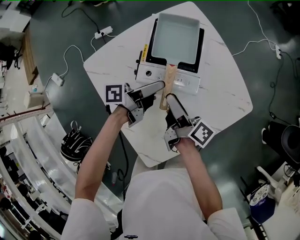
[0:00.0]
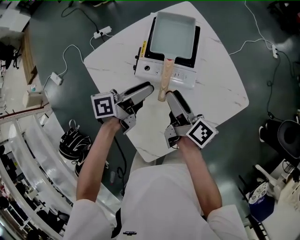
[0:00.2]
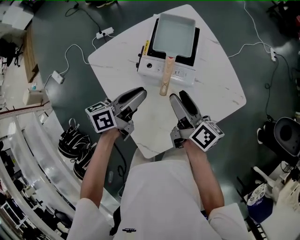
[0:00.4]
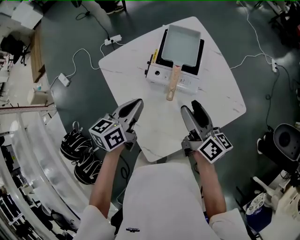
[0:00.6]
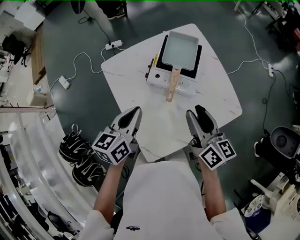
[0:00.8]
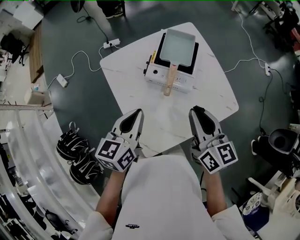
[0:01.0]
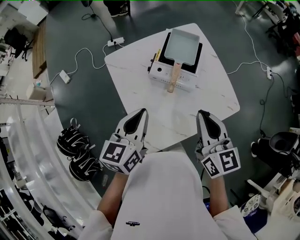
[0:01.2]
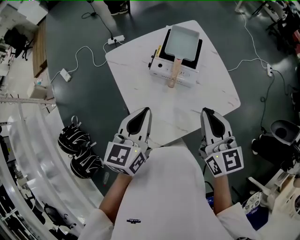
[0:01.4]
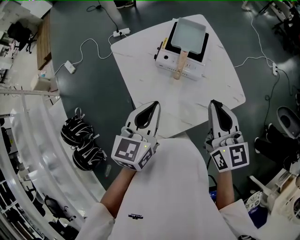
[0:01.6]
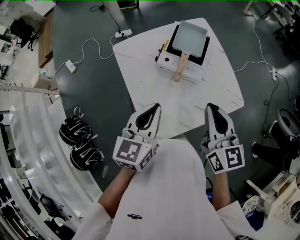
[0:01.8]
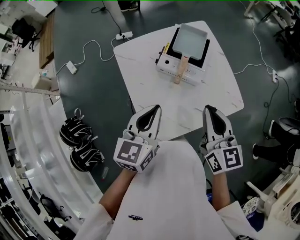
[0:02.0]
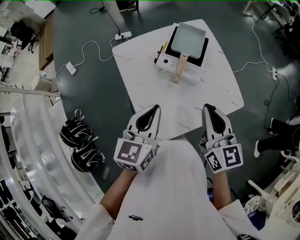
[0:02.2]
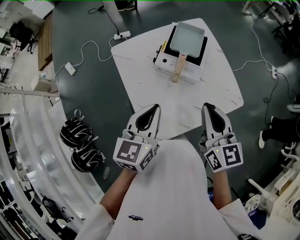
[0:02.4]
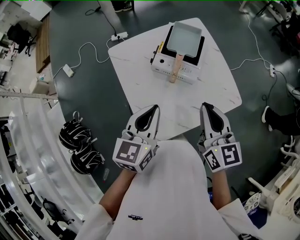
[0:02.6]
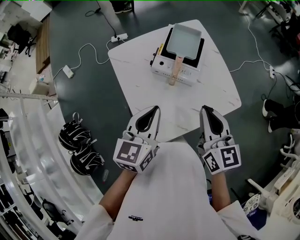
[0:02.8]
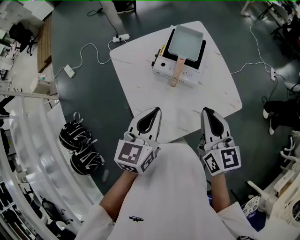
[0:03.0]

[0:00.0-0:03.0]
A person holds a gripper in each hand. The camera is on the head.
0:00.0 to 0:01.6: The left gripper heads backward and upward, covering roughly 30 cm, rotates about 70 degrees, and closes. Meanwhile the right gripper heads upward and backward, covering roughly 30 cm, rotates around the line of its fingers by about 70 degrees, counterclockwise from behind, and closes its fingers.
0:01.6 to 0:03.0: The grippers make only small movements.

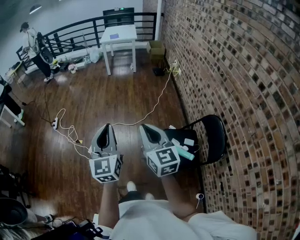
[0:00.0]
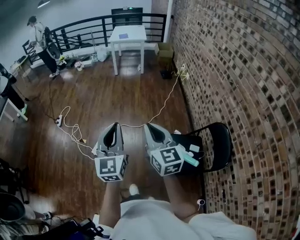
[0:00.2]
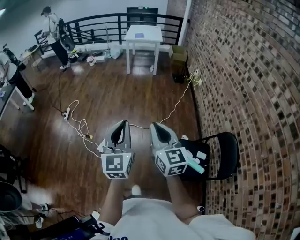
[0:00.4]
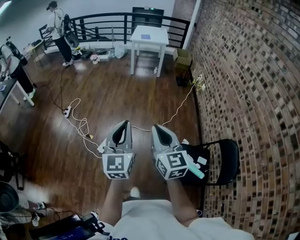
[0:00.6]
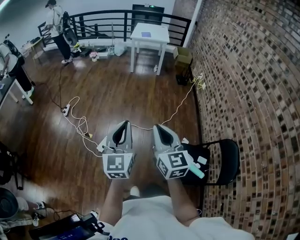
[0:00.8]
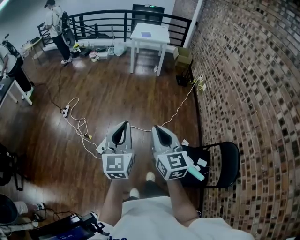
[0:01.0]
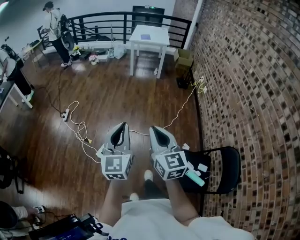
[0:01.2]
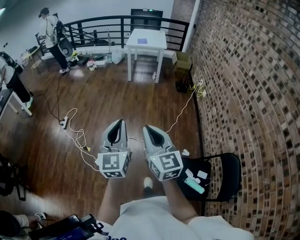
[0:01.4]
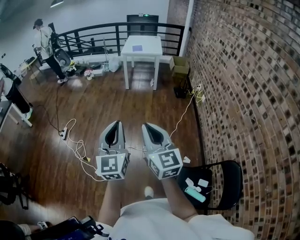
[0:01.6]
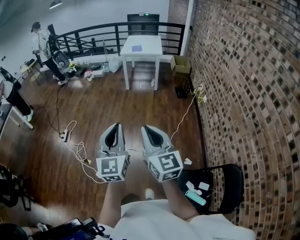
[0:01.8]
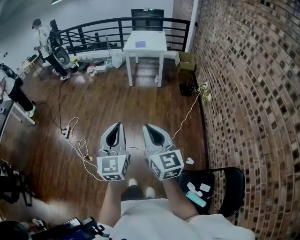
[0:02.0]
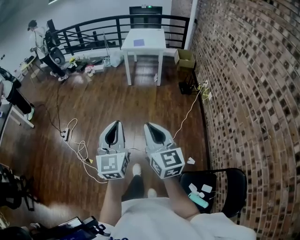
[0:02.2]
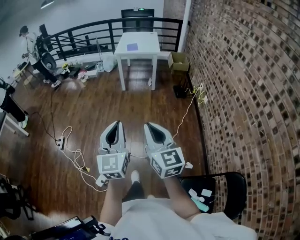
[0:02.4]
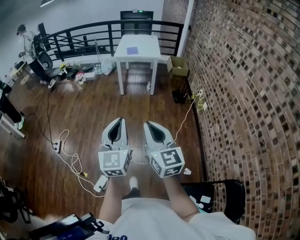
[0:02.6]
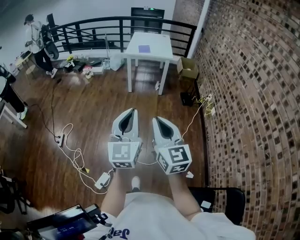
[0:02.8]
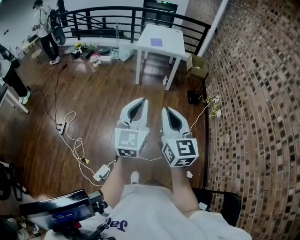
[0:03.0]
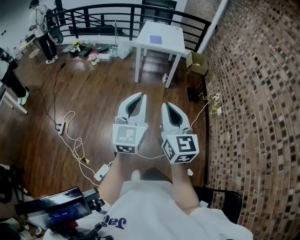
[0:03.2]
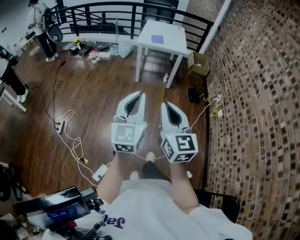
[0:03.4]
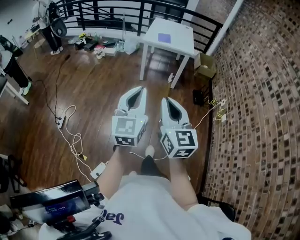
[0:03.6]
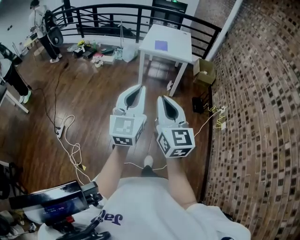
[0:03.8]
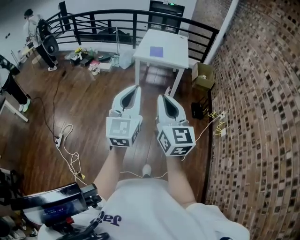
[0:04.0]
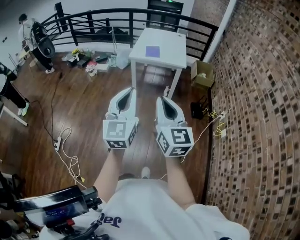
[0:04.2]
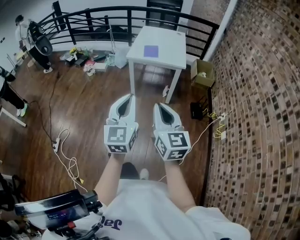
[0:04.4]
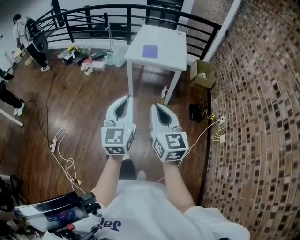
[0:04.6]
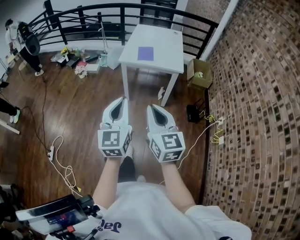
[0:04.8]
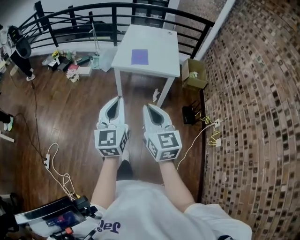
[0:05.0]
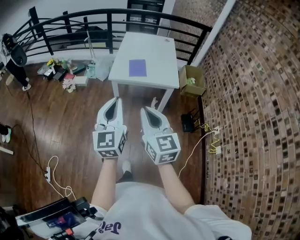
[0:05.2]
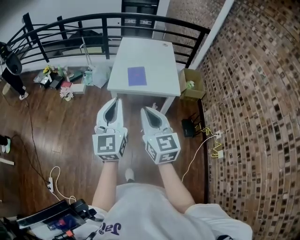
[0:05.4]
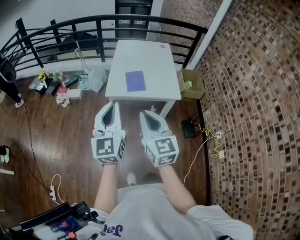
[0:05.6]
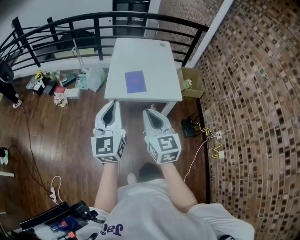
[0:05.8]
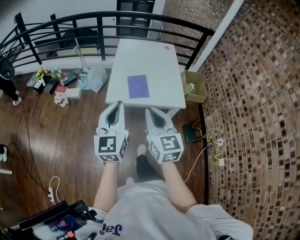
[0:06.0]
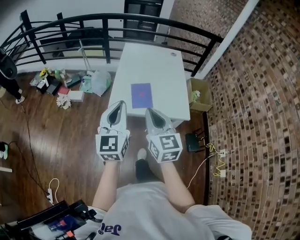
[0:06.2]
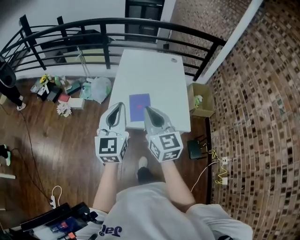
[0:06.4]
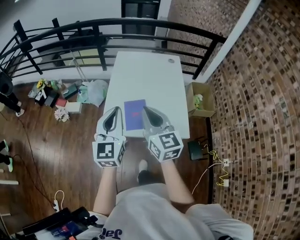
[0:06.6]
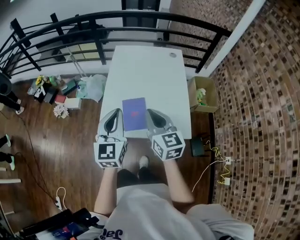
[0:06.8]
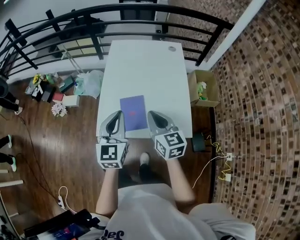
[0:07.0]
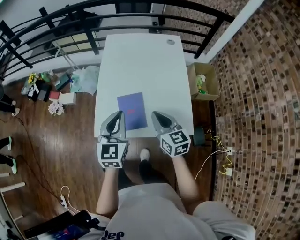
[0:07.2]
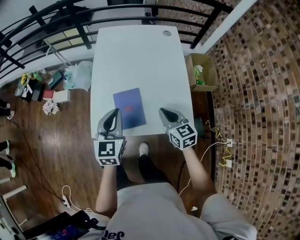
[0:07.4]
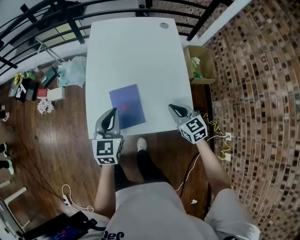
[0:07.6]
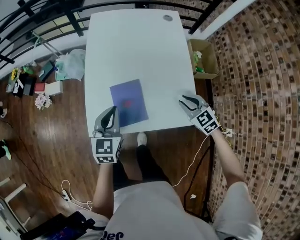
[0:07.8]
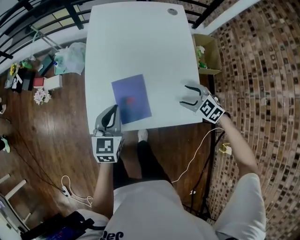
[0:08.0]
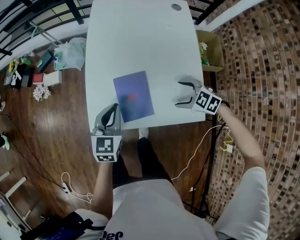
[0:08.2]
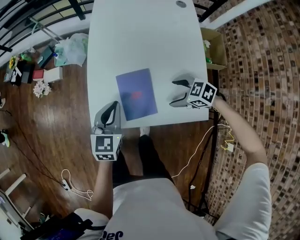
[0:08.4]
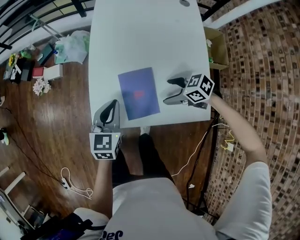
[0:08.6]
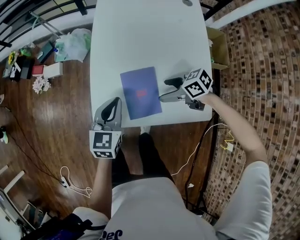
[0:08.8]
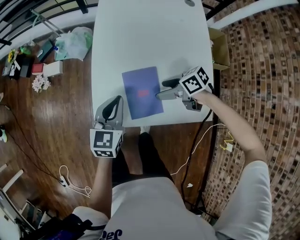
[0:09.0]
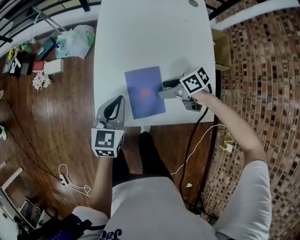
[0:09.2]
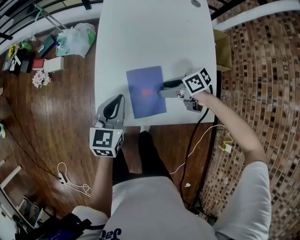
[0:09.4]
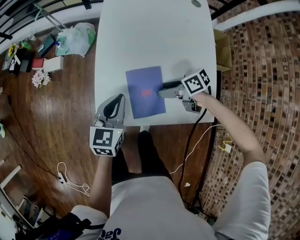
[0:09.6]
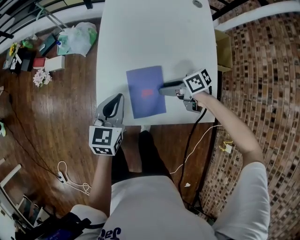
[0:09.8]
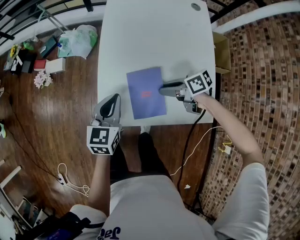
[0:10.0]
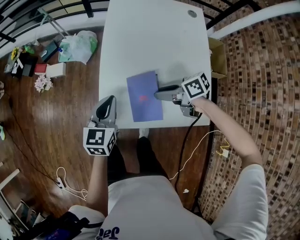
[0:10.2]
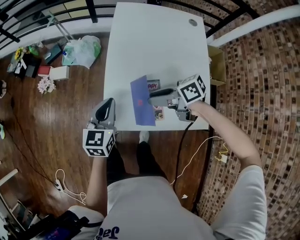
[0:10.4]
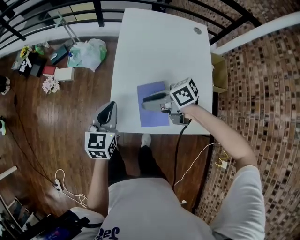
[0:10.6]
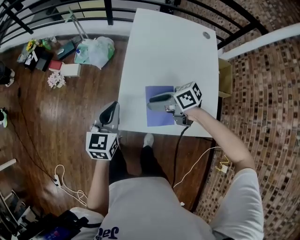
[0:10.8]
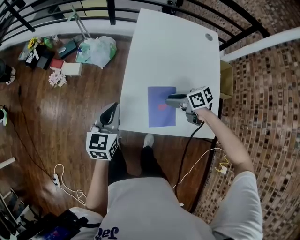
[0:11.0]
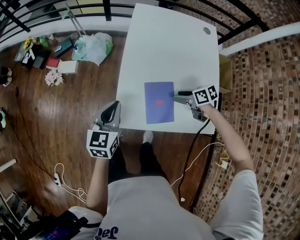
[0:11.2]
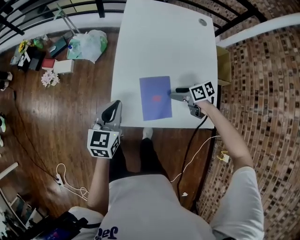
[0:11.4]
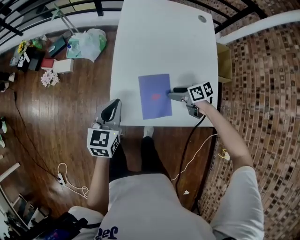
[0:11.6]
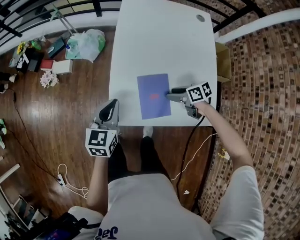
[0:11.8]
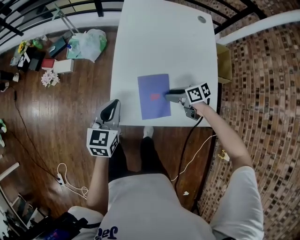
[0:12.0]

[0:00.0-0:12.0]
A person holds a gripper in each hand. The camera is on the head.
0:00.0 to 0:01.6: Both grippers move forward, approximately 30 cm.
0:01.6 to 0:03.0: Both grippers travel together forward, some 35 cm.
0:03.0 to 0:04.4: The two grippers go roughly 35 cm forward.
0:04.4 to 0:06.0: The pair of grippers is taken forward, approximately 50 cm.
0:06.0 to 0:07.6: The right gripper goes about 50 cm forward, downward and to the right, and rotates some 30 degrees; the left gripper shifts about 40 cm forward and downward, and swivels approximately 30 degrees.
0:07.6 to 0:09.0: The right gripper moves about 15 cm, swivels approximately 60 degrees, and opens; the left gripper shifts some 5 cm downward.
0:09.0 to 0:10.4: The left gripper heads to the left, covering about 5 cm. Meanwhile the right gripper shifts some 15 cm upward and to the left, and closes its fingers.
0:10.4 to 0:12.0: The right gripper is displaced downward and to the right by roughly 15 cm.

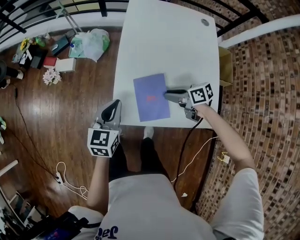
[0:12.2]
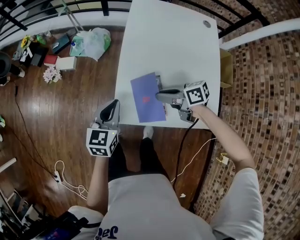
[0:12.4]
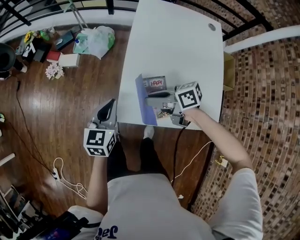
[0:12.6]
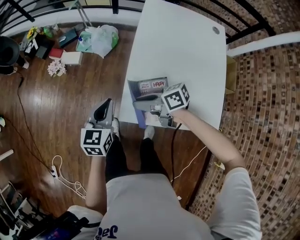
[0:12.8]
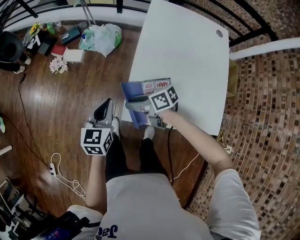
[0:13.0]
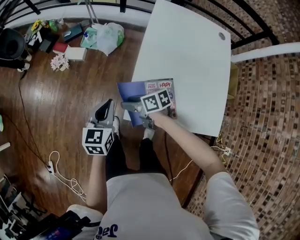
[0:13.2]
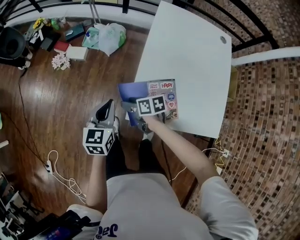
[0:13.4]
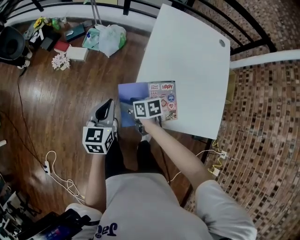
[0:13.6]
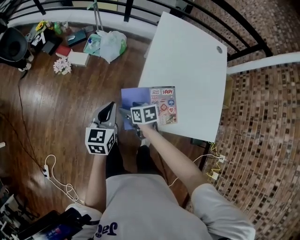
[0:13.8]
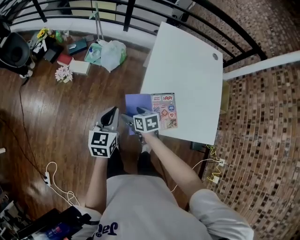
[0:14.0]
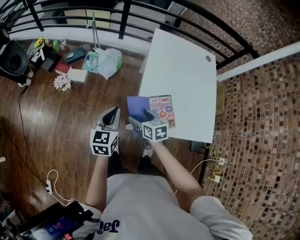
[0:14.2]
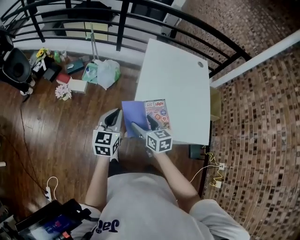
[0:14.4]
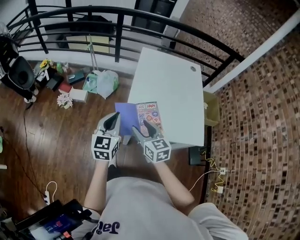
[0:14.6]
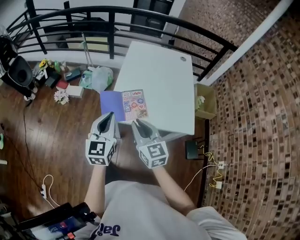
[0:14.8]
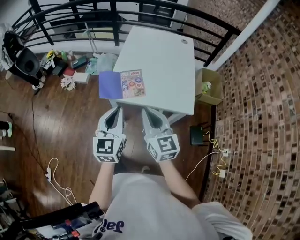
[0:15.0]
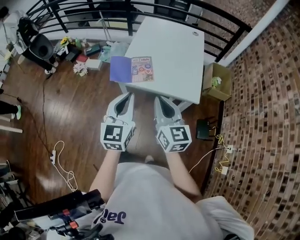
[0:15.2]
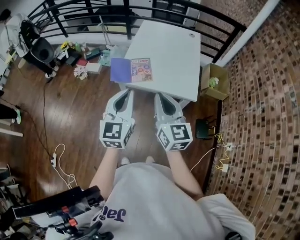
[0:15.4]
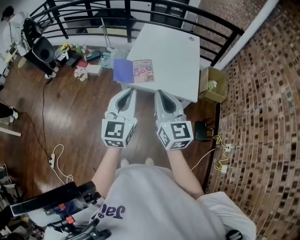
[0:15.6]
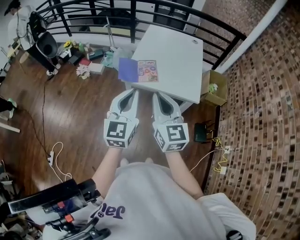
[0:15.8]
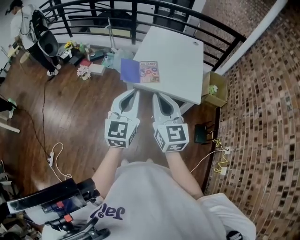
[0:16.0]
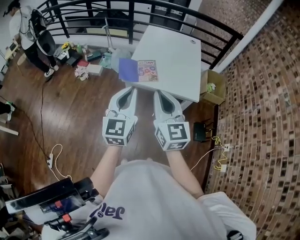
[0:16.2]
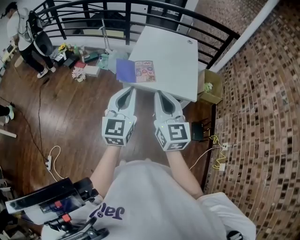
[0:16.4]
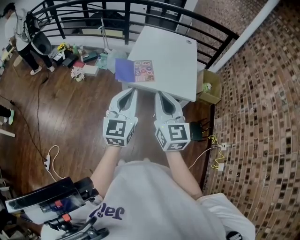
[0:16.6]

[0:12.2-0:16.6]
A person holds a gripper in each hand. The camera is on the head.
0:12.2 to 0:13.6: The left gripper shifts roughly 15 cm to the left and forward; the right gripper shifts about 30 cm to the left and forward.
0:13.6 to 0:15.2: Both grippers move backward, upward and to the right, roughly 50 cm. The left gripper rotates approximately 30 degrees. Meanwhile the right gripper tilts its fingers some 40 degrees upward, and closes.
0:15.2 to 0:16.6: The right gripper travels upward, backward and to the left by approximately 15 cm; the left gripper goes roughly 10 cm backward, upward and to the left.

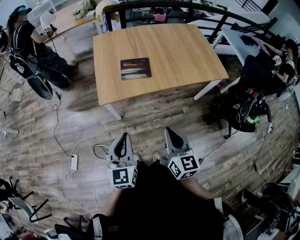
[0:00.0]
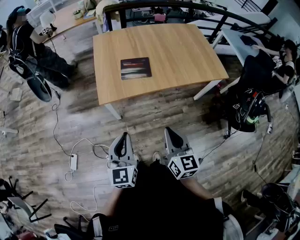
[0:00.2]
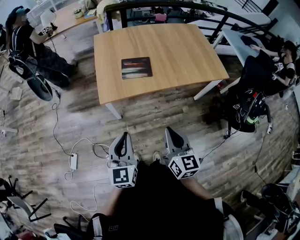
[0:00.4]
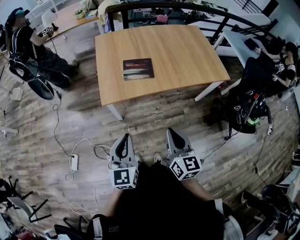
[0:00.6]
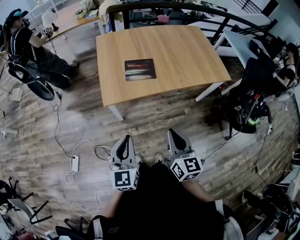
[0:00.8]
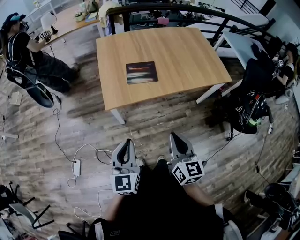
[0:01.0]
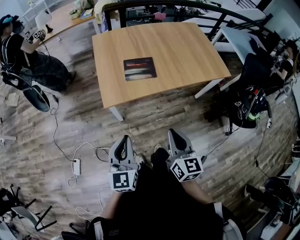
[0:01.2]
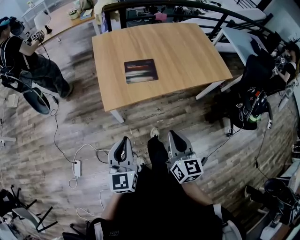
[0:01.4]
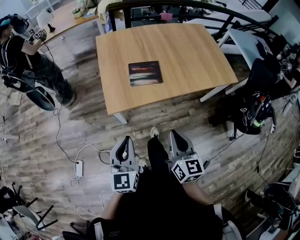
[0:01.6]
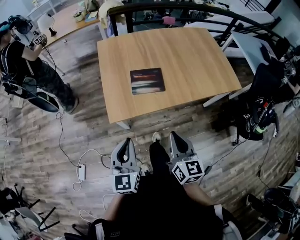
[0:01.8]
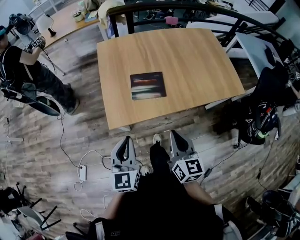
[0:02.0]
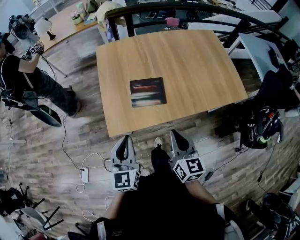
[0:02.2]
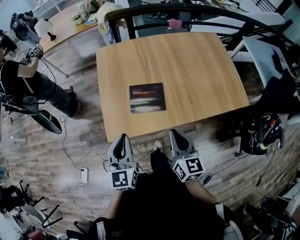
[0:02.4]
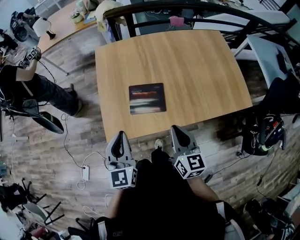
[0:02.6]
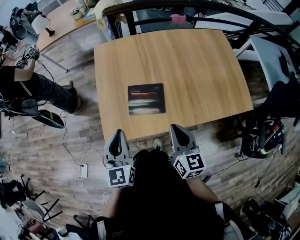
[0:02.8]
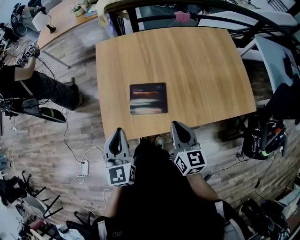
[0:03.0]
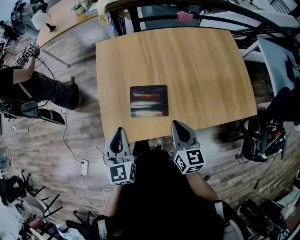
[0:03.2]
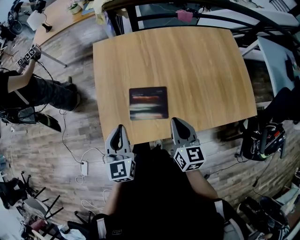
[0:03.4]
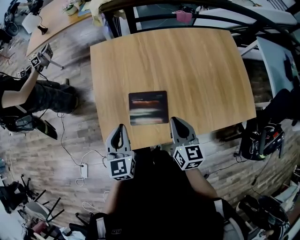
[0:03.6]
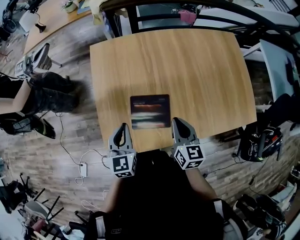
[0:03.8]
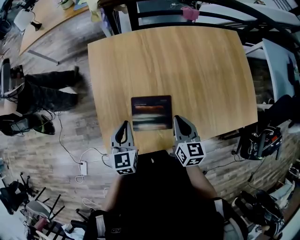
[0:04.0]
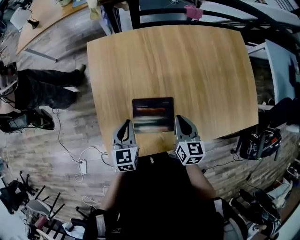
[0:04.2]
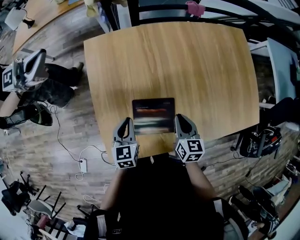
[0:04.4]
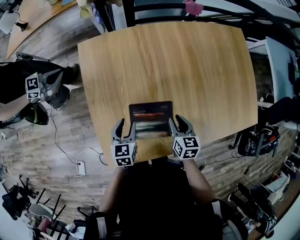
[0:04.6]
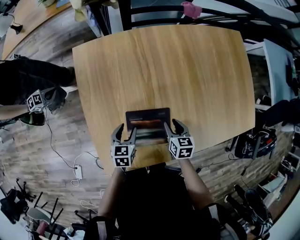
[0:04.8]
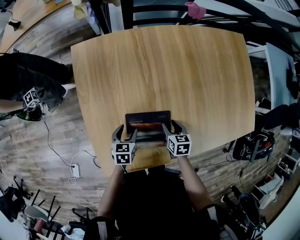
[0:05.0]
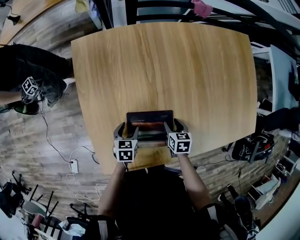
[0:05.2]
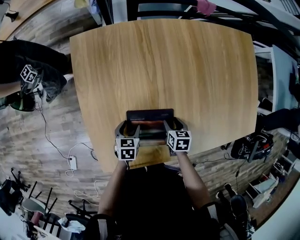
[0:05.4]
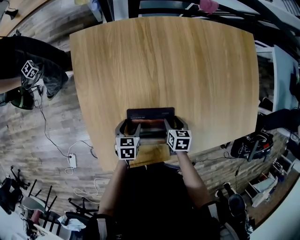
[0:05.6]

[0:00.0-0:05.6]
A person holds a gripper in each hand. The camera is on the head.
0:00.0 to 0:01.4: Both grippers travel together to the left, roughly 5 cm.
0:01.4 to 0:02.8: Both grippers travel together forward, about 30 cm.
0:02.8 to 0:04.2: The grippers both shift forward and downward by some 25 cm. The left gripper changes its angle by some 20 degrees.
0:04.2 to 0:05.6: The two grippers go some 20 cm downward. The right gripper angles its fingers downward, by roughly 30 degrees, and opens up; the left gripper swivels some 30 degrees, and opens up.
